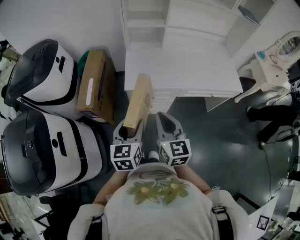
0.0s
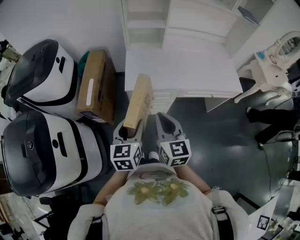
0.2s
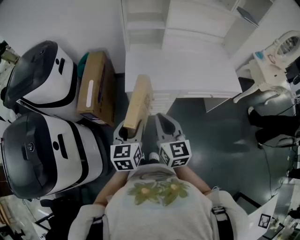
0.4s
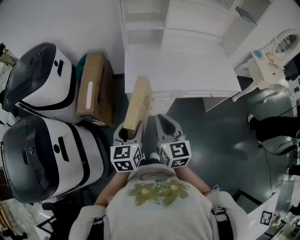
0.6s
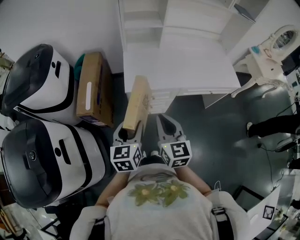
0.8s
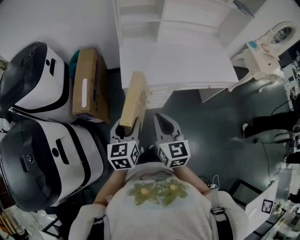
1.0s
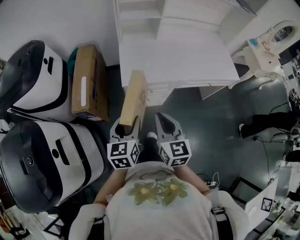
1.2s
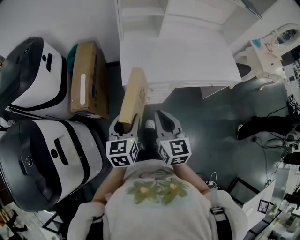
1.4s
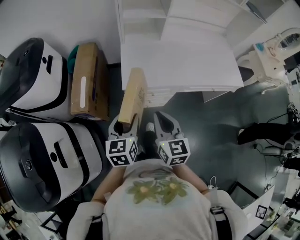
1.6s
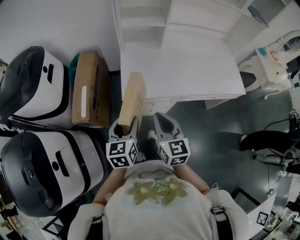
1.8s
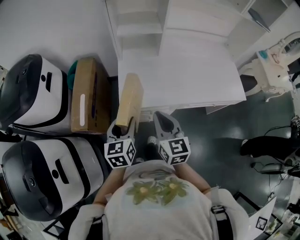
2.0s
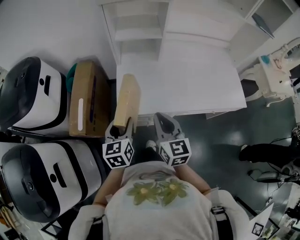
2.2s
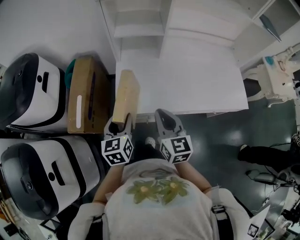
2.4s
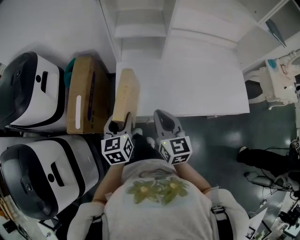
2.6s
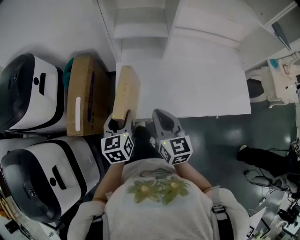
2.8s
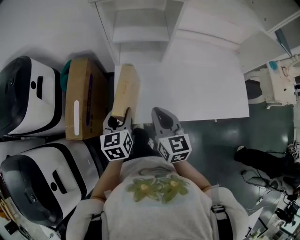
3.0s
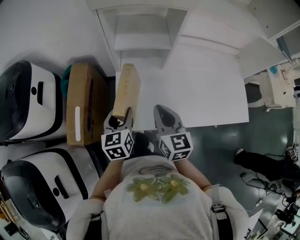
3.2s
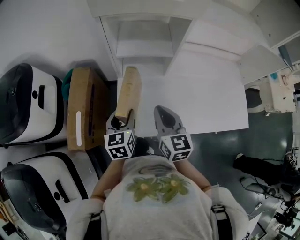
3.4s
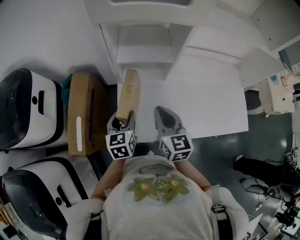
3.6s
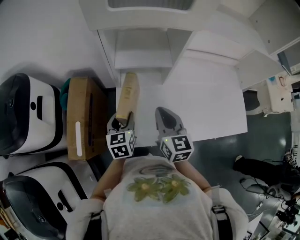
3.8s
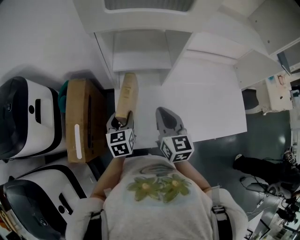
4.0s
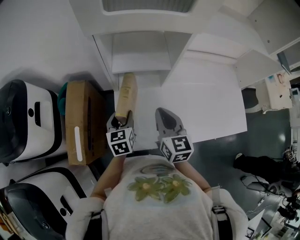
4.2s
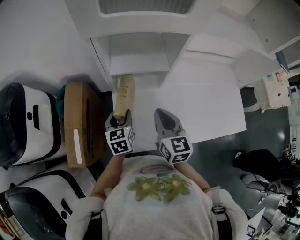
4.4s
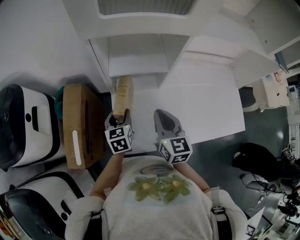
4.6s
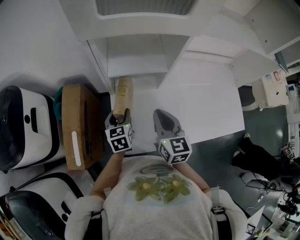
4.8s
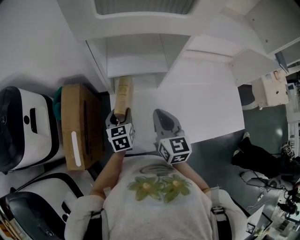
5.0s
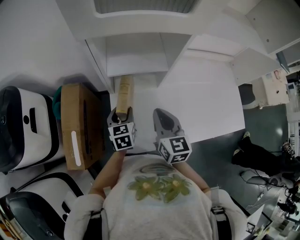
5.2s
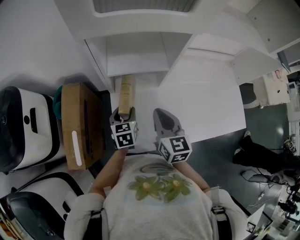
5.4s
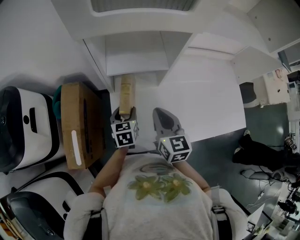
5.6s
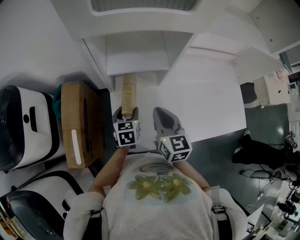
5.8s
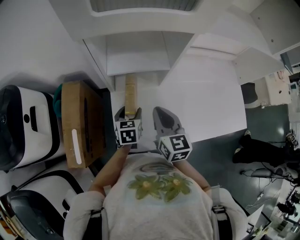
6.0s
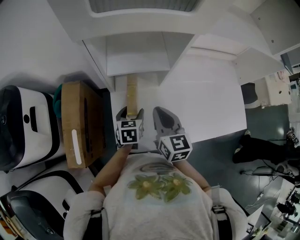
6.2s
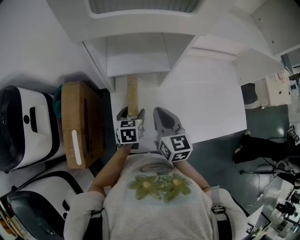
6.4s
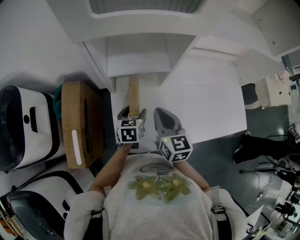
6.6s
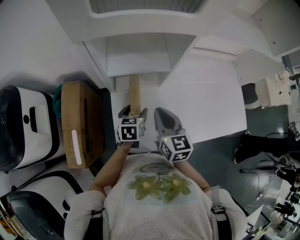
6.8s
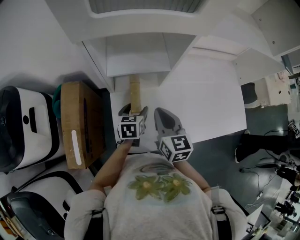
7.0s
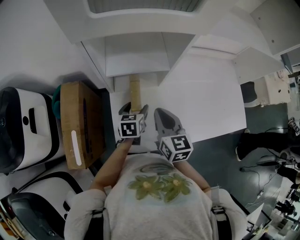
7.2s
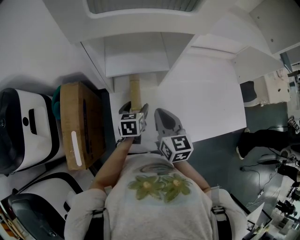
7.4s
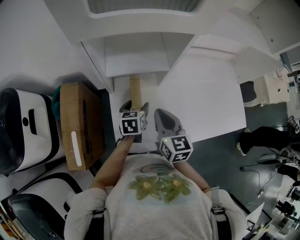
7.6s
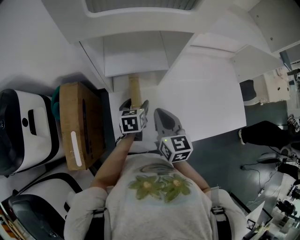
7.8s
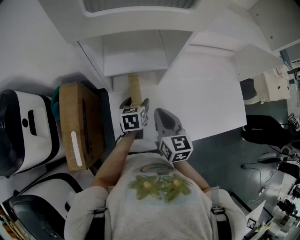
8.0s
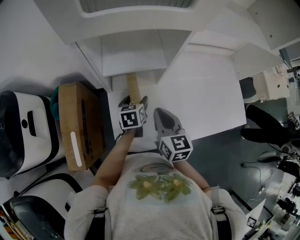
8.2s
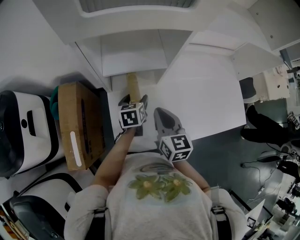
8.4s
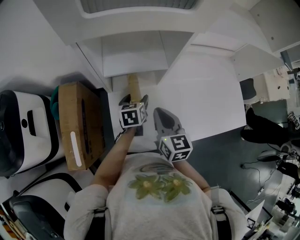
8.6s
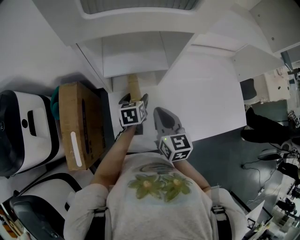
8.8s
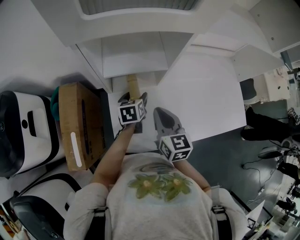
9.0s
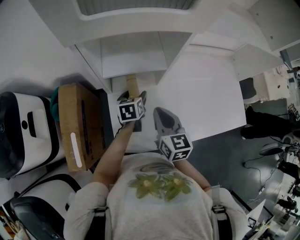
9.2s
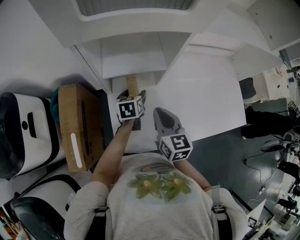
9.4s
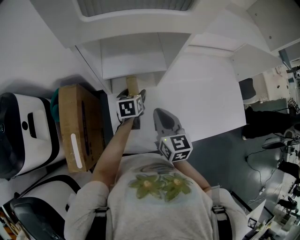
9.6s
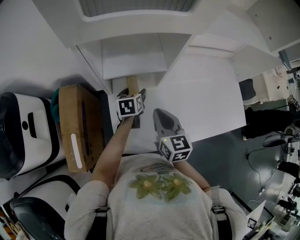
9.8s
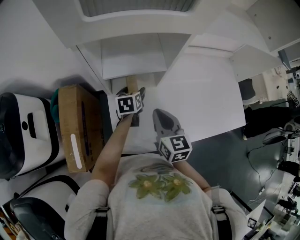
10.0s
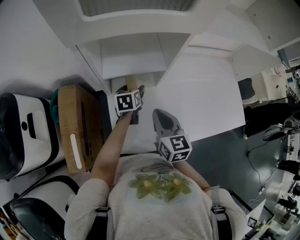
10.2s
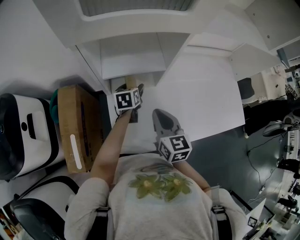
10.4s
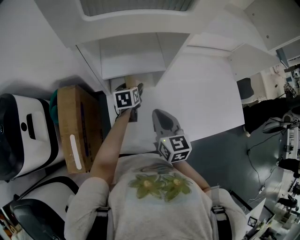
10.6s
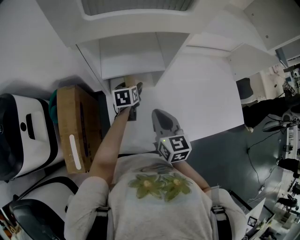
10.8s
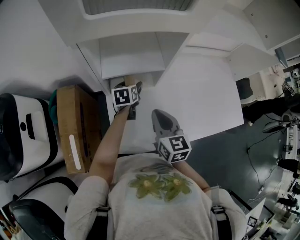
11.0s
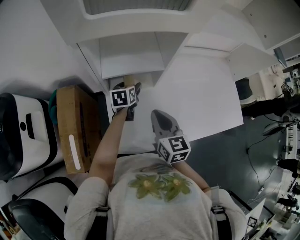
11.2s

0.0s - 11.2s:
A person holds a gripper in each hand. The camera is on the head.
0.0s - 1.6s: The grippers both shift forward by about 5 cm.
1.6s - 3.2s: Both grippers move forward, some 30 cm.
3.2s - 4.8s: The right gripper heads forward, covering some 10 cm; the left gripper travels forward and downward by approximately 15 cm.
4.8s - 6.4s: The left gripper moves to the right, some 5 cm.
6.4s - 8.0s: The grippers stay close to where they were, moving slightly.
8.0s - 9.6s: The left gripper moves forward, approximately 5 cm.
9.6s - 11.2s: The grippers make only small movements.

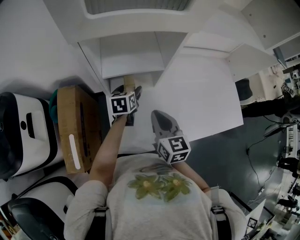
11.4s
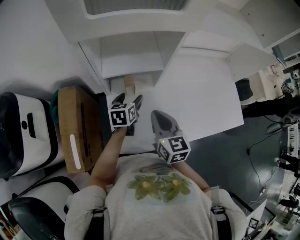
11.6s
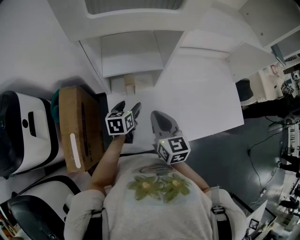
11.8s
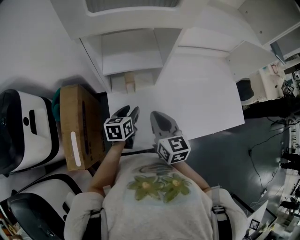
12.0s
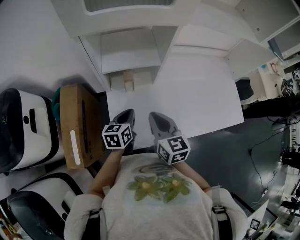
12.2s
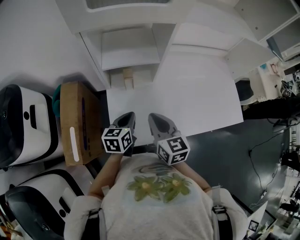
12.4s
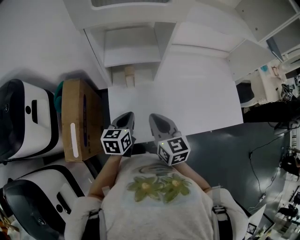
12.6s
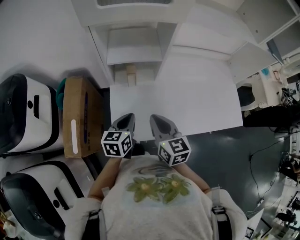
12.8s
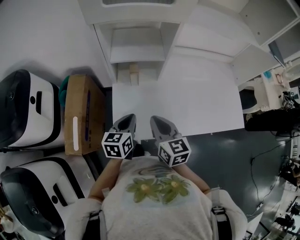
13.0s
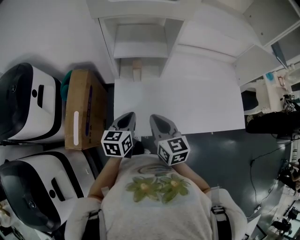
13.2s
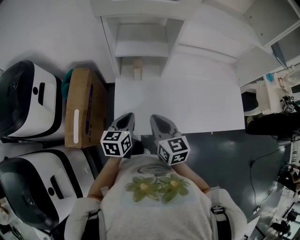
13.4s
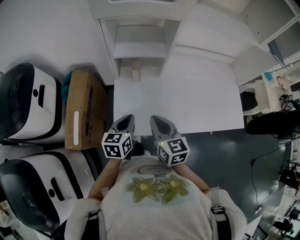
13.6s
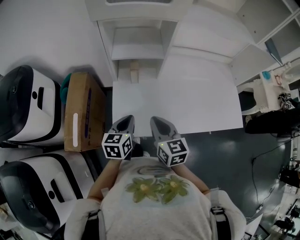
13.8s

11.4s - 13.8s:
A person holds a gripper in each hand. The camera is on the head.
11.4s - 12.6s: The right gripper moves backward, roughly 10 cm. Meanwhile the left gripper heads backward, covering approximately 20 cm, and closes.
12.6s - 13.8s: Both grippers move backward, roughly 5 cm.

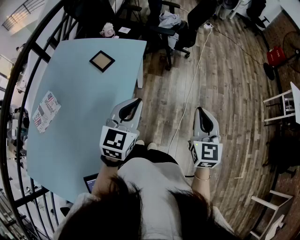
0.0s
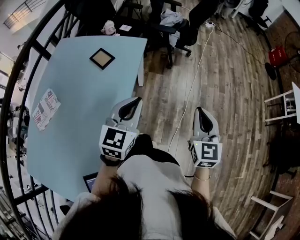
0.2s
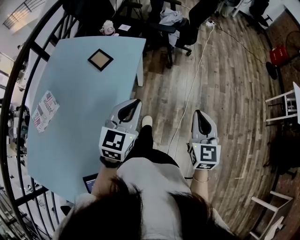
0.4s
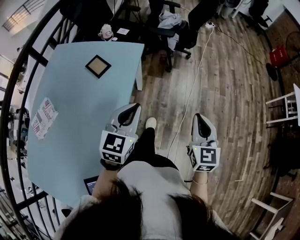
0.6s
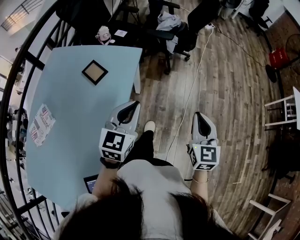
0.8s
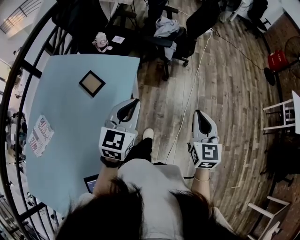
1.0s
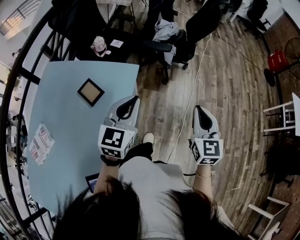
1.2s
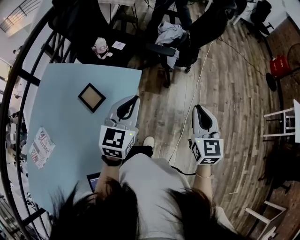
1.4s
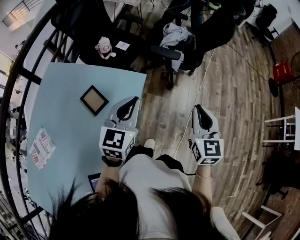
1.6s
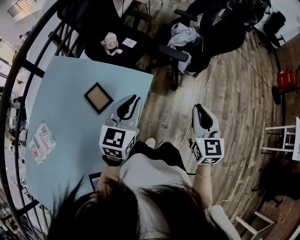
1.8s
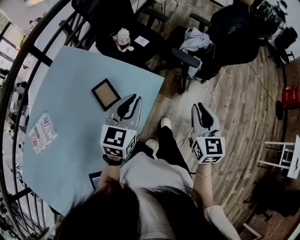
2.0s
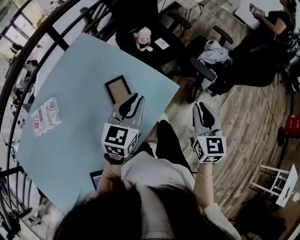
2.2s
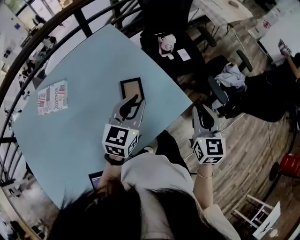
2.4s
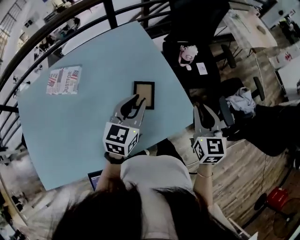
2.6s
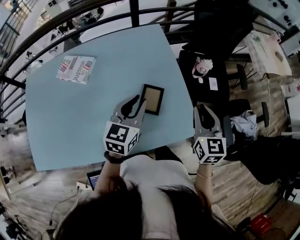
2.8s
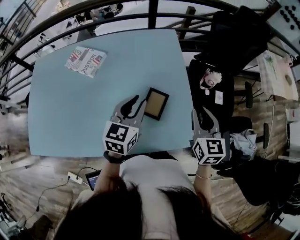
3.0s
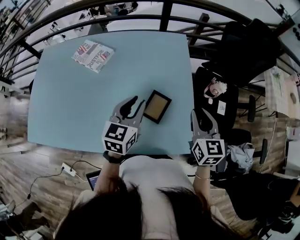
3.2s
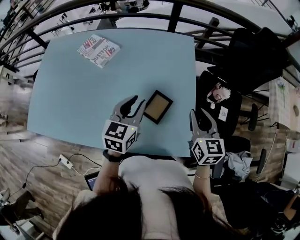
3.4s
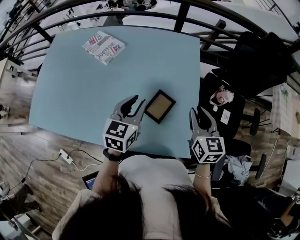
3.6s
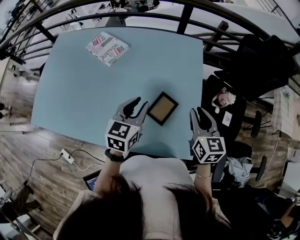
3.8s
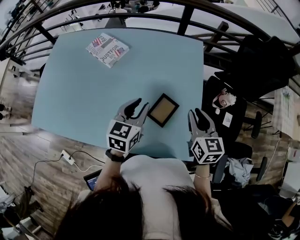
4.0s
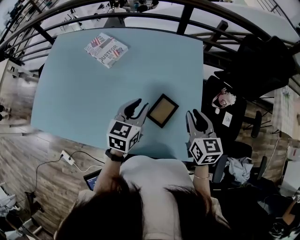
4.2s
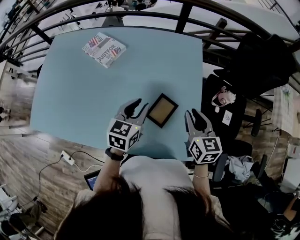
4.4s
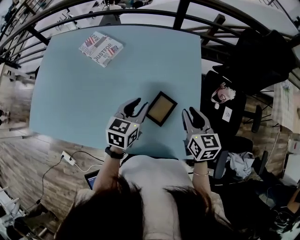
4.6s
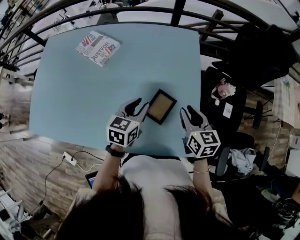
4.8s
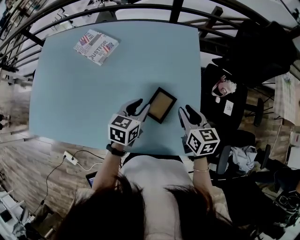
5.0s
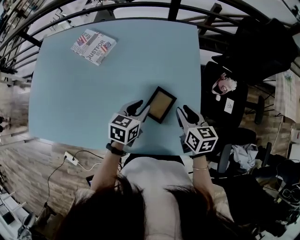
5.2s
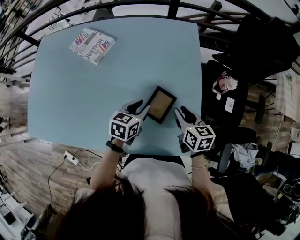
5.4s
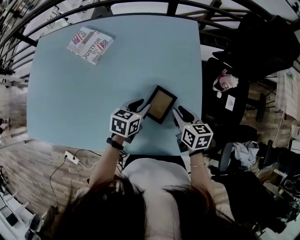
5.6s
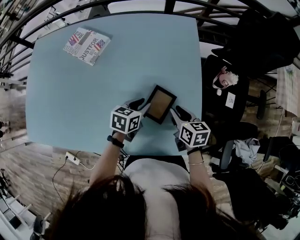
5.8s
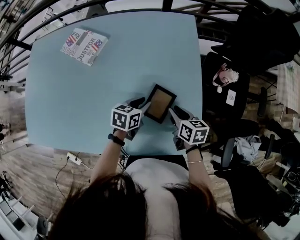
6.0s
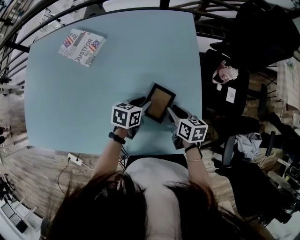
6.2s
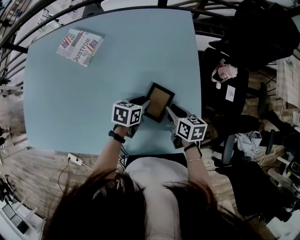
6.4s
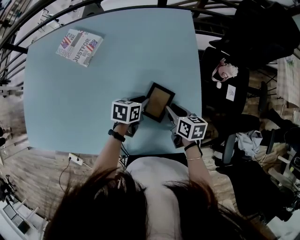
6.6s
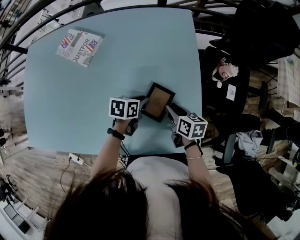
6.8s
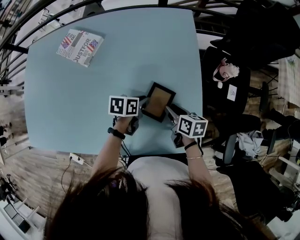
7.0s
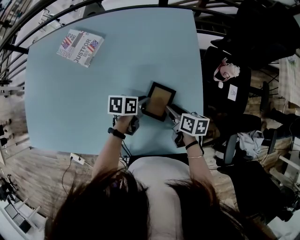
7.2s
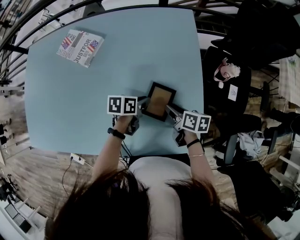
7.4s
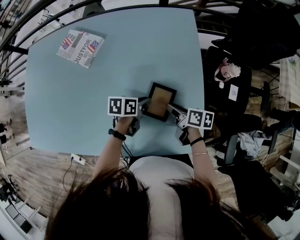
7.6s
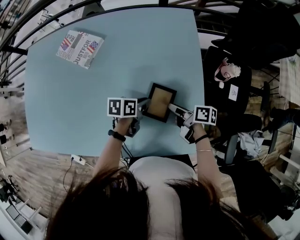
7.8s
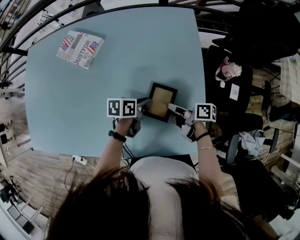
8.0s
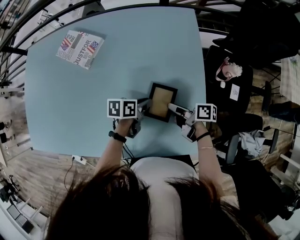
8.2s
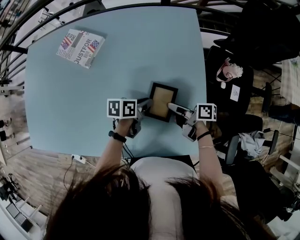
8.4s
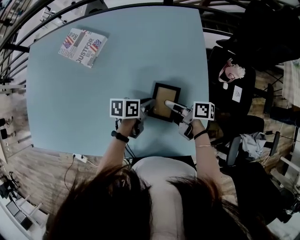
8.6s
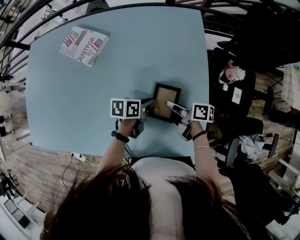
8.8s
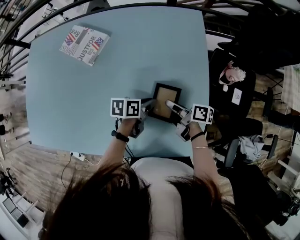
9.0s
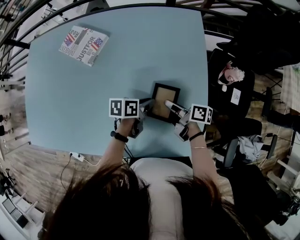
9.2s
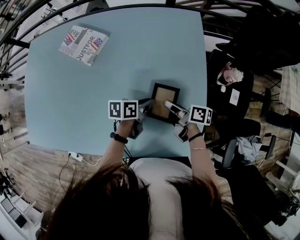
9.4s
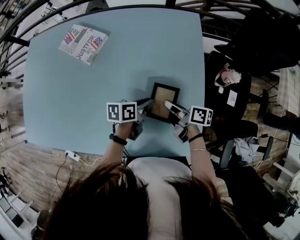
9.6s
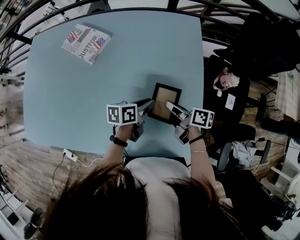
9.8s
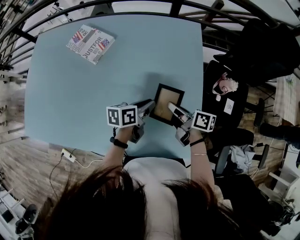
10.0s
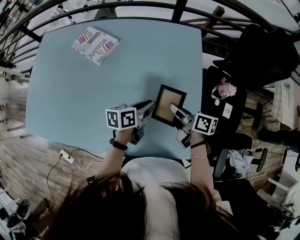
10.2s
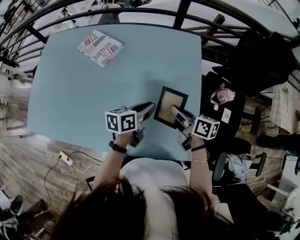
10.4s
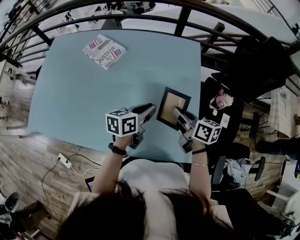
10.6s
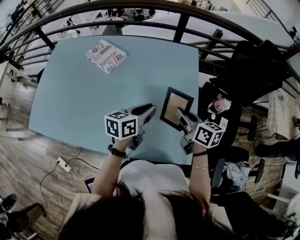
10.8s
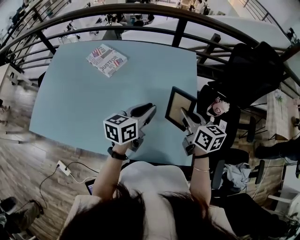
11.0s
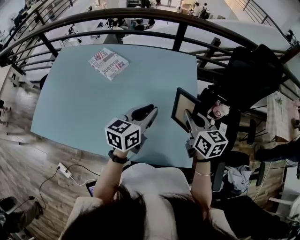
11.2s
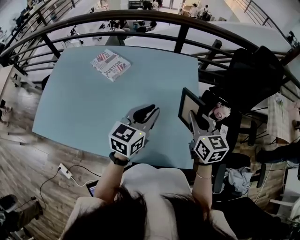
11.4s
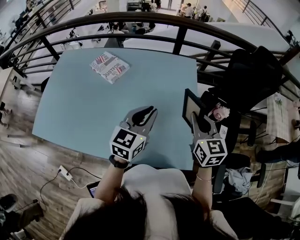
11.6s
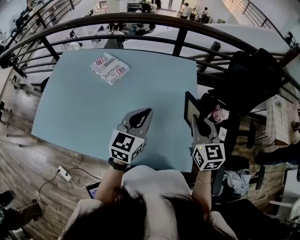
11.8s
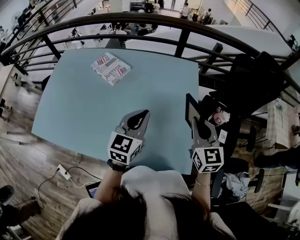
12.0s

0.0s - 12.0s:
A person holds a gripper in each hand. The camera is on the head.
0.0s - 1.6s: Both grippers move forward, roughly 30 cm.
1.6s - 3.0s: The left gripper shifts by roughly 25 cm, and rotates roughly 70 degrees. The right gripper changes place by some 40 cm, and rotates roughly 70 degrees.
3.0s - 4.4s: The right gripper is displaced forward by roughly 5 cm, and changes its angle by approximately 20 degrees. The left gripper changes place by about 5 cm.
4.4s - 6.0s: Both grippers move downward, roughly 15 cm. The left gripper swivels some 30 degrees. Meanwhile the right gripper swivels approximately 30 degrees.
6.0s - 7.6s: The left gripper swivels approximately 20 degrees. The right gripper rotates about 30 degrees.
7.6s - 9.0s: The right gripper closes.
9.0s - 10.4s: The grippers both shift upward by some 10 cm. The left gripper changes its angle by approximately 20 degrees; the right gripper rotates approximately 30 degrees.
10.4s - 12.0s: The grippers both shift upward by approximately 15 cm. The right gripper rotates around the line of its fingers by about 50 degrees, counterclockwise from behind. Meanwhile the left gripper twists roughly 40 degrees clockwise, seen from behind.
